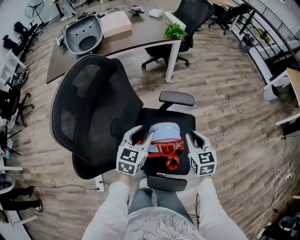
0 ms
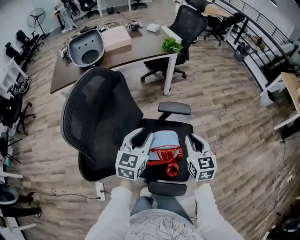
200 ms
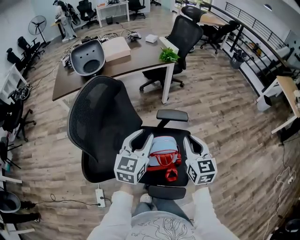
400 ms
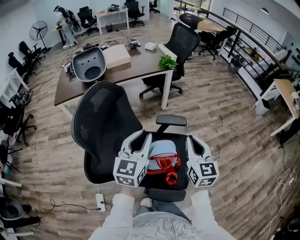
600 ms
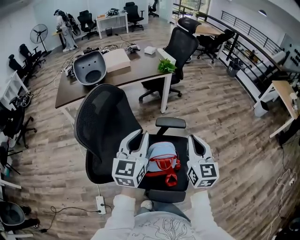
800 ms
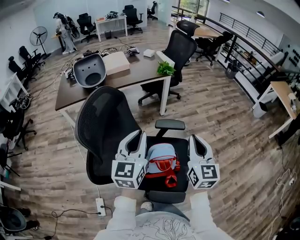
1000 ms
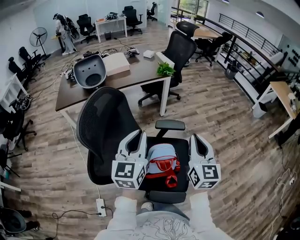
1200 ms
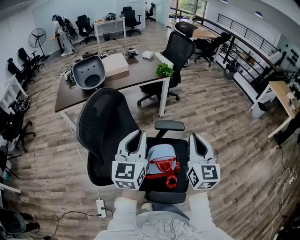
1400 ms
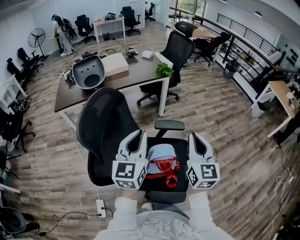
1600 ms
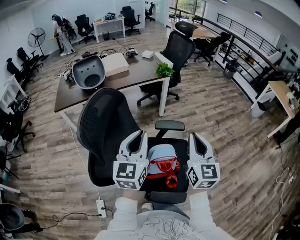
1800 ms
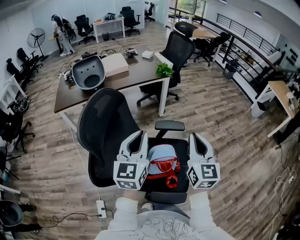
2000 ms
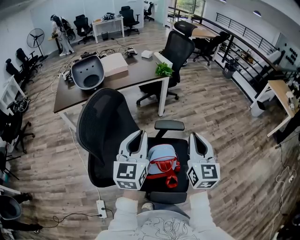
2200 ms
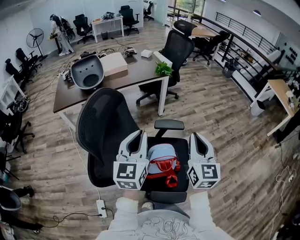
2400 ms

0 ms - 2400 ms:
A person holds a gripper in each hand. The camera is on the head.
0 ms - 1200 ms: The grippers both shift upward by roughly 25 cm. The right gripper changes its angle by some 30 degrees, while the left gripper swivels approximately 30 degrees, and closes.
1200 ms - 2400 ms: There are only small adjustments of the grippers.

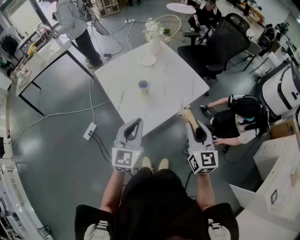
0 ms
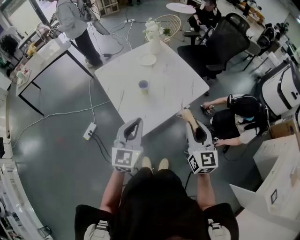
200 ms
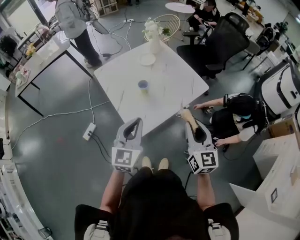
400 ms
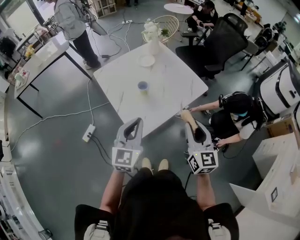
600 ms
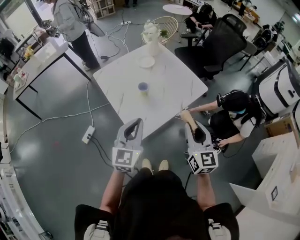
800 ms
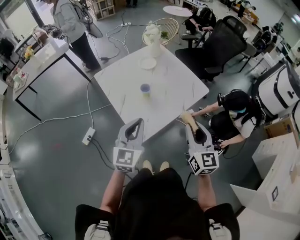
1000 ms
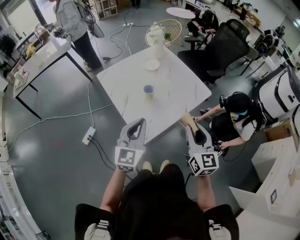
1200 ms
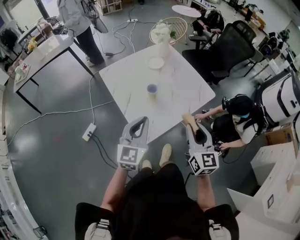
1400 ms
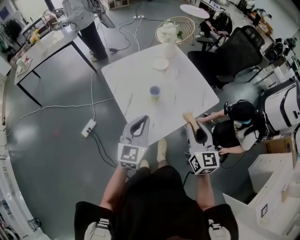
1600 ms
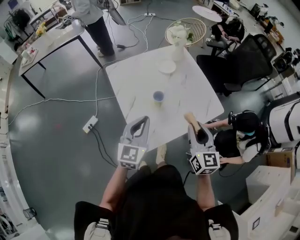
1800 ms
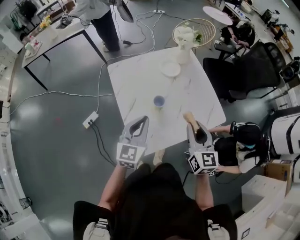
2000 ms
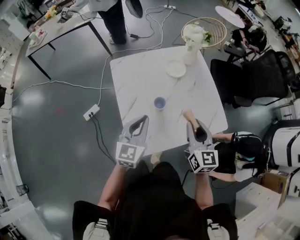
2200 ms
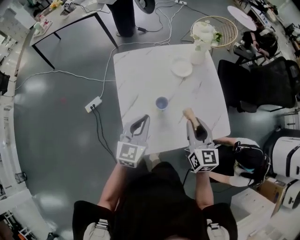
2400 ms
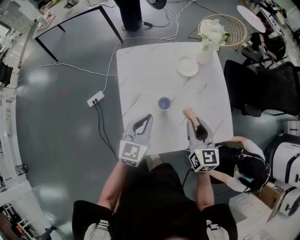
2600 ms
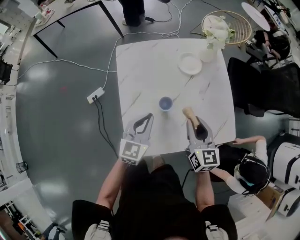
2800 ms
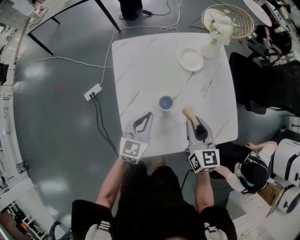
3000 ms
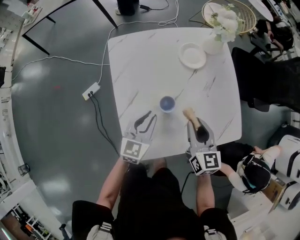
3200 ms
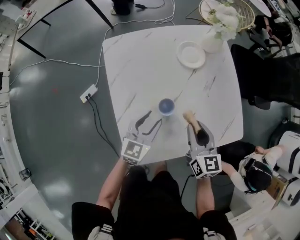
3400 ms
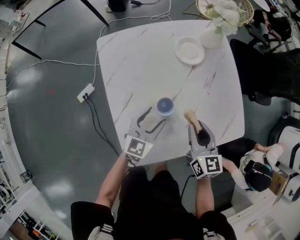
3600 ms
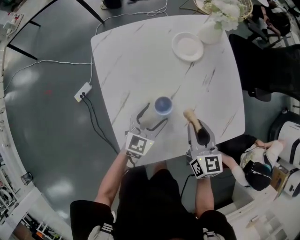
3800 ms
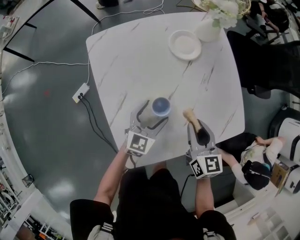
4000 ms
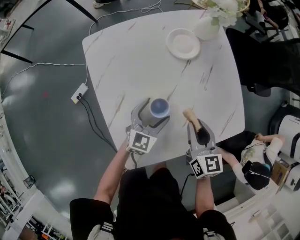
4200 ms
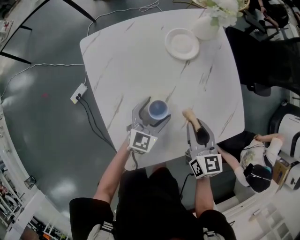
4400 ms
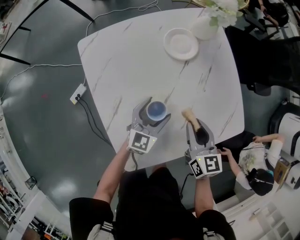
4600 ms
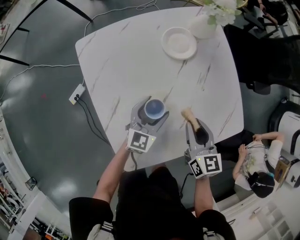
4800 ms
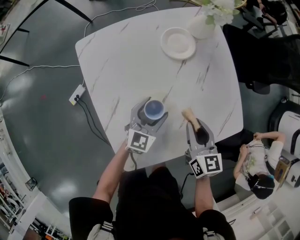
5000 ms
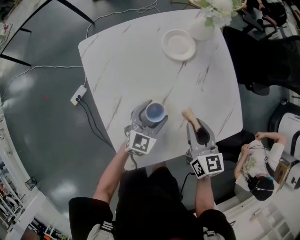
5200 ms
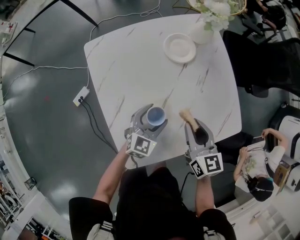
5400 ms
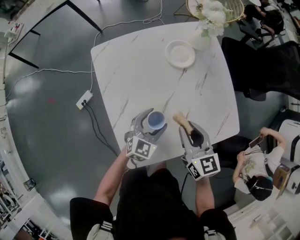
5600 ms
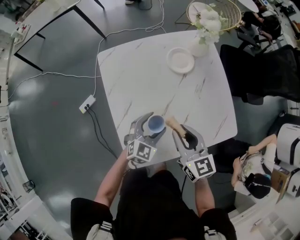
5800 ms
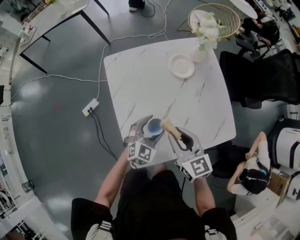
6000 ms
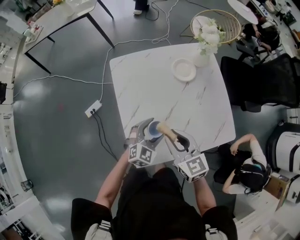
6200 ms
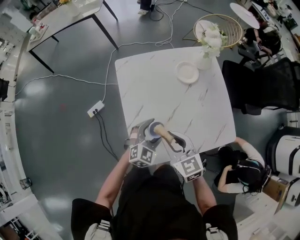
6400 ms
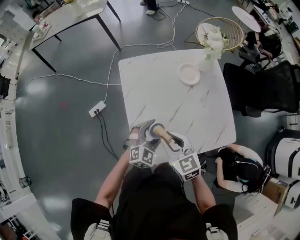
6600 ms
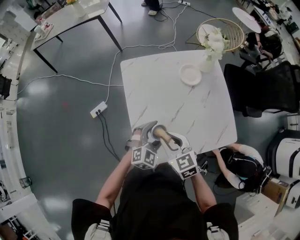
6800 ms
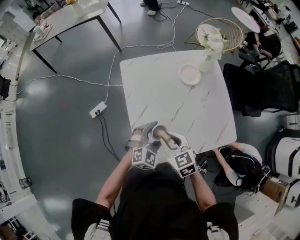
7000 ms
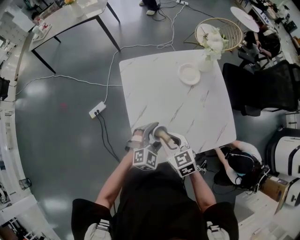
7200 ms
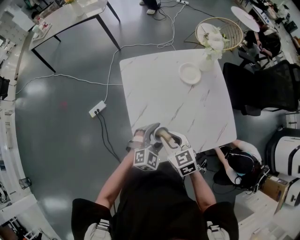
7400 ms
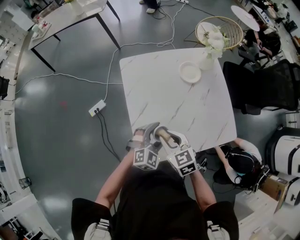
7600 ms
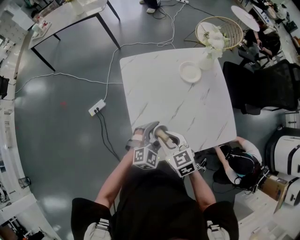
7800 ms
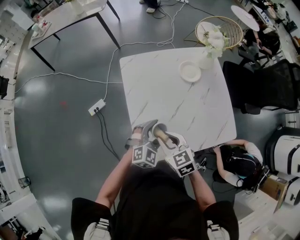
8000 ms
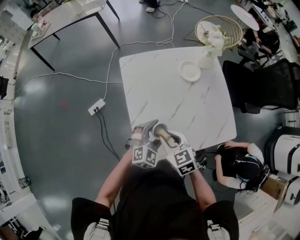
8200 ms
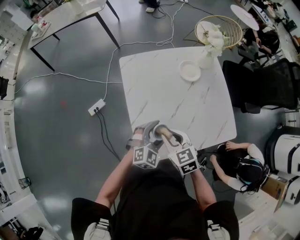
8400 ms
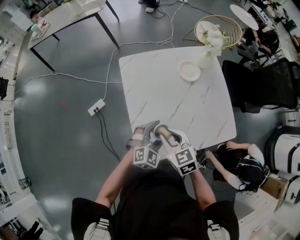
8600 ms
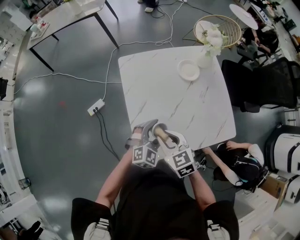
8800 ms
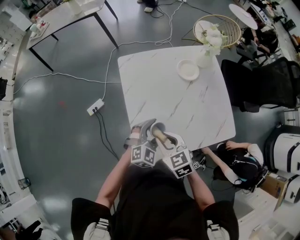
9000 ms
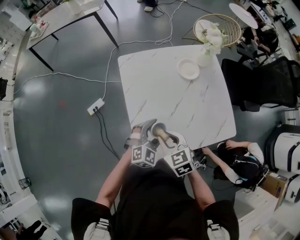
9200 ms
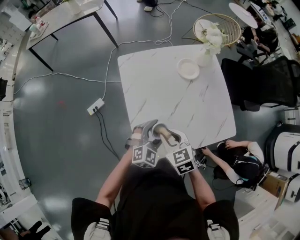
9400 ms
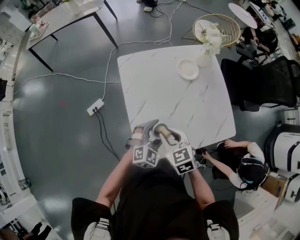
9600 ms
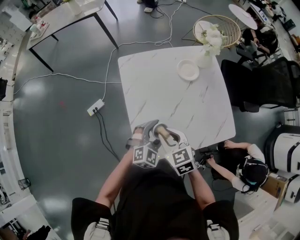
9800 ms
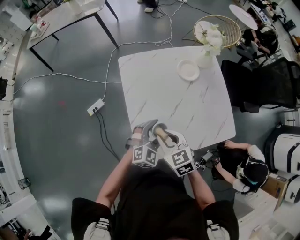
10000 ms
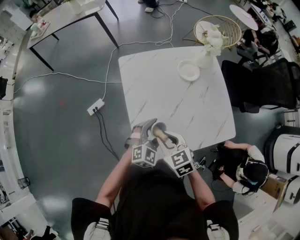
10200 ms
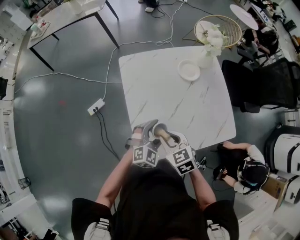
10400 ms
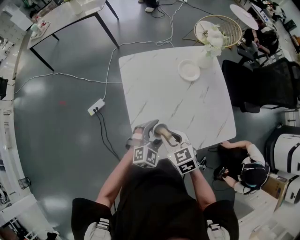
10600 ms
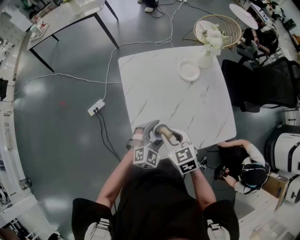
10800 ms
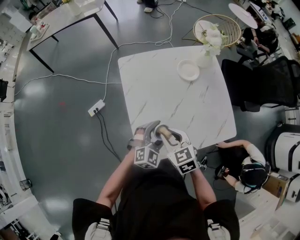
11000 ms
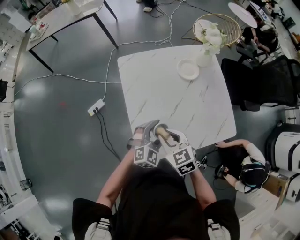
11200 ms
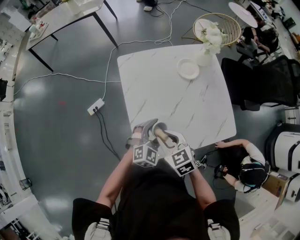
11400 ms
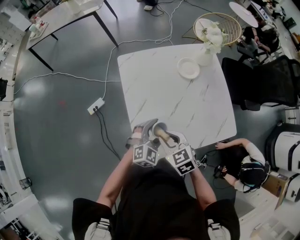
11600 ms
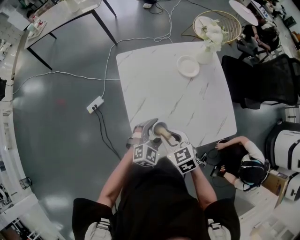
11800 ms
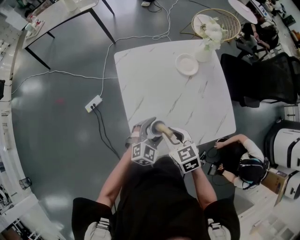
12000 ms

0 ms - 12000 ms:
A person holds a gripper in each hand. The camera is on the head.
0 ms - 1600 ms: The grippers both shift forward and to the left by roughly 10 cm.
1600 ms - 3000 ms: The grippers both shift forward and downward by roughly 25 cm. The left gripper changes its angle by some 20 degrees; the right gripper rotates about 30 degrees.
3000 ms - 4400 ms: The left gripper shifts about 15 cm downward, forward and to the right, and opens. The right gripper moves downward, some 10 cm.
4400 ms - 6000 ms: The right gripper goes some 15 cm upward and to the left, and turns by roughly 20 degrees. Meanwhile the left gripper moves upward and backward, approximately 10 cm.
6000 ms - 7600 ms: The right gripper goes approximately 10 cm to the left, and rotates about 20 degrees. The left gripper moves backward, approximately 5 cm.
7600 ms - 12000 ms: The grippers move only a little.

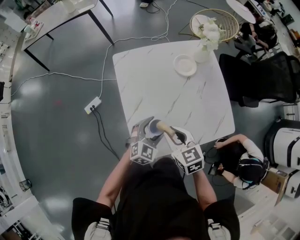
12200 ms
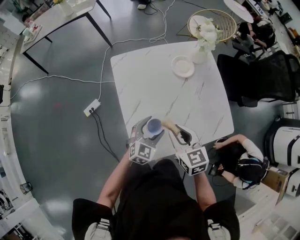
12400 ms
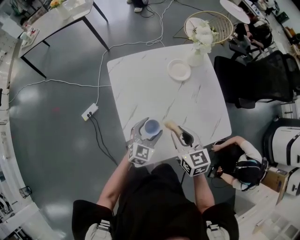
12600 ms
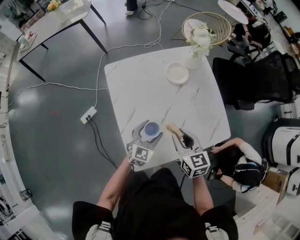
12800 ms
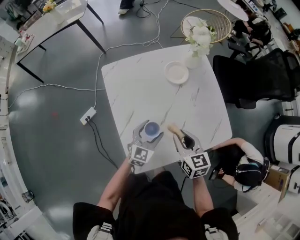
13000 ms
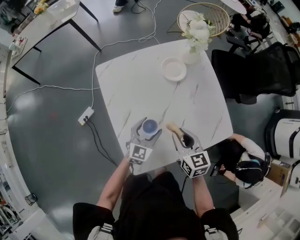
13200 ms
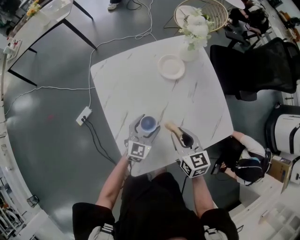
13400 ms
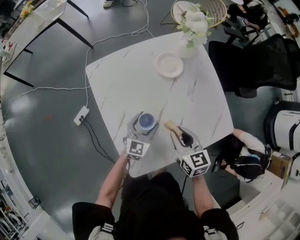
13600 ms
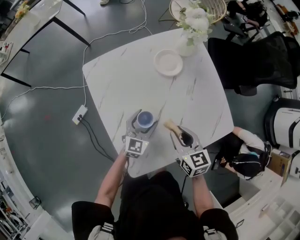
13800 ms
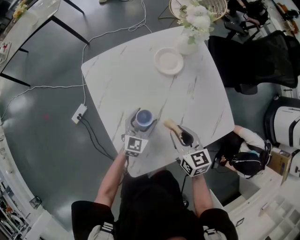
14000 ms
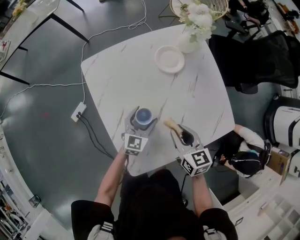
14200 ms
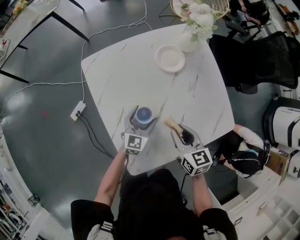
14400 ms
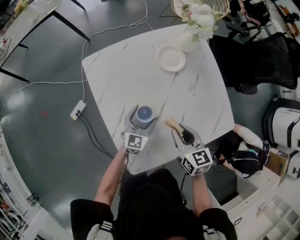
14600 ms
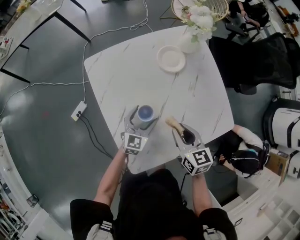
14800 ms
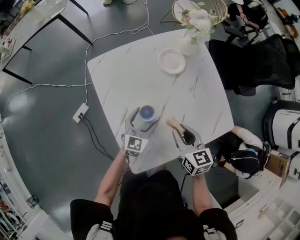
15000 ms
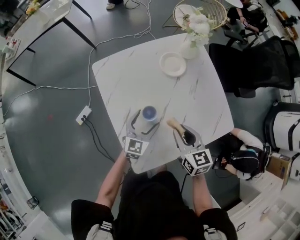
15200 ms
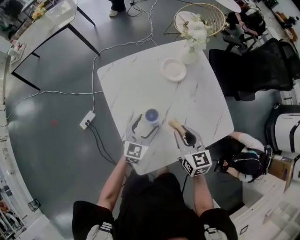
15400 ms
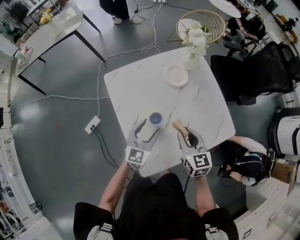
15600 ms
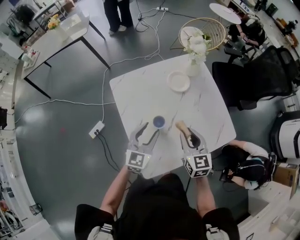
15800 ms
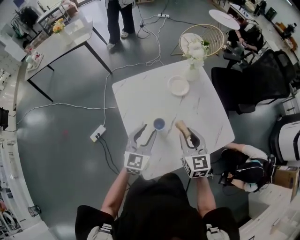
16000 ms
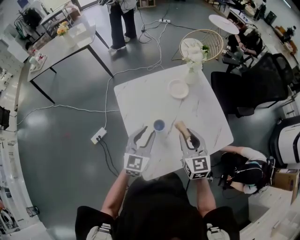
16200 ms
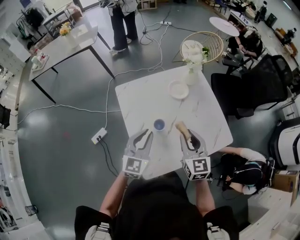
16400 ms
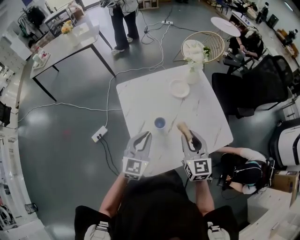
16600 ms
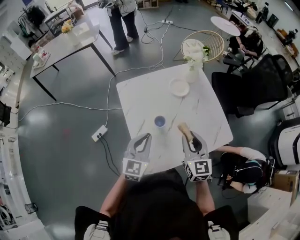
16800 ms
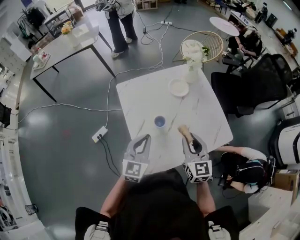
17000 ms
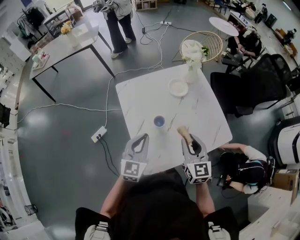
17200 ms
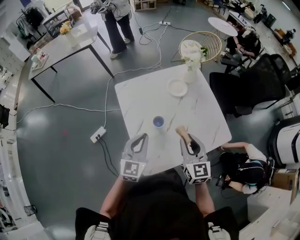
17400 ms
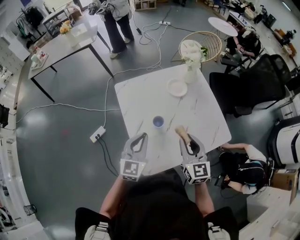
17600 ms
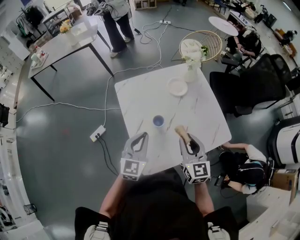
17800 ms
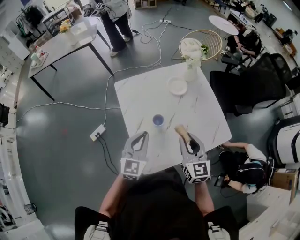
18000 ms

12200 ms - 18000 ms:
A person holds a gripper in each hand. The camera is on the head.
12200 ms - 13600 ms: The left gripper moves forward and downward, some 15 cm. Meanwhile the right gripper heads to the right, forward and downward, covering some 15 cm, and turns by approximately 20 degrees.
13600 ms - 15000 ms: There are only small adjustments of the grippers.
15000 ms - 16600 ms: The left gripper goes approximately 25 cm upward and backward, and closes up. The right gripper goes about 15 cm upward, and swivels approximately 20 degrees.
16600 ms - 18000 ms: The grippers move only a little.

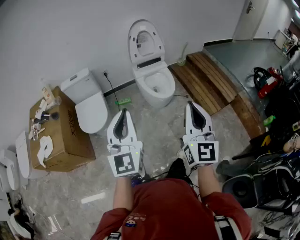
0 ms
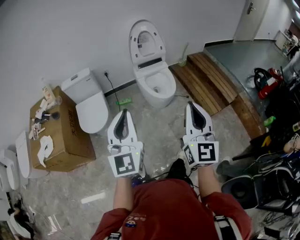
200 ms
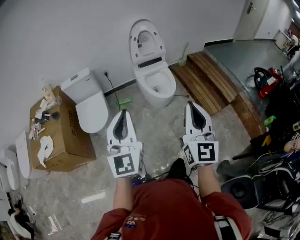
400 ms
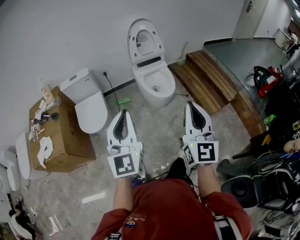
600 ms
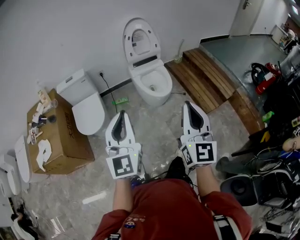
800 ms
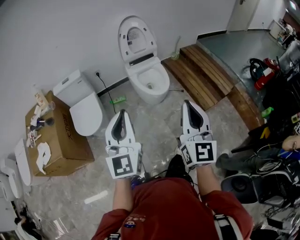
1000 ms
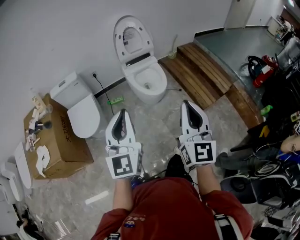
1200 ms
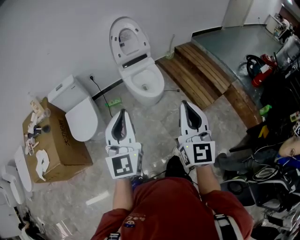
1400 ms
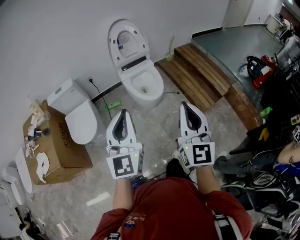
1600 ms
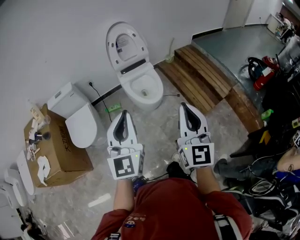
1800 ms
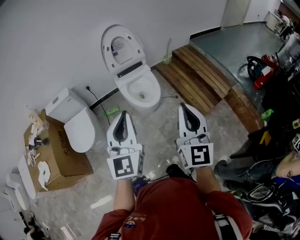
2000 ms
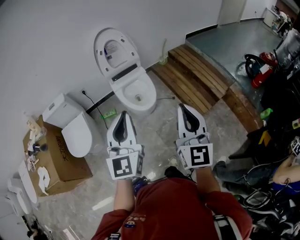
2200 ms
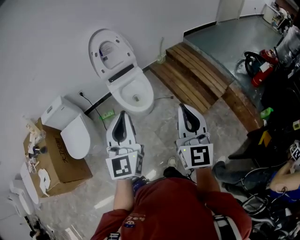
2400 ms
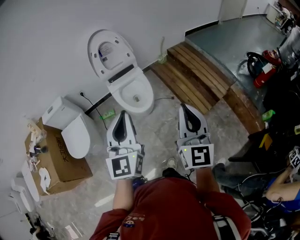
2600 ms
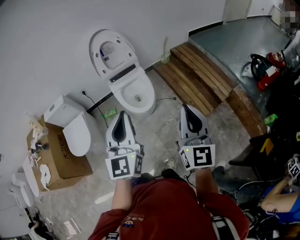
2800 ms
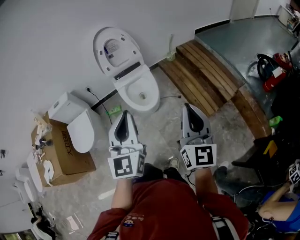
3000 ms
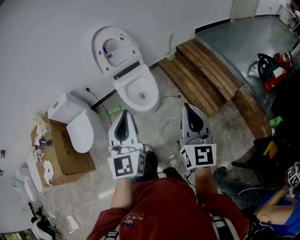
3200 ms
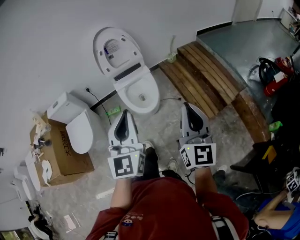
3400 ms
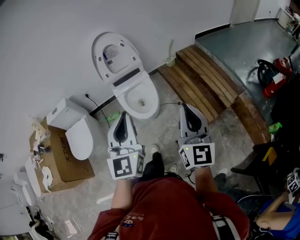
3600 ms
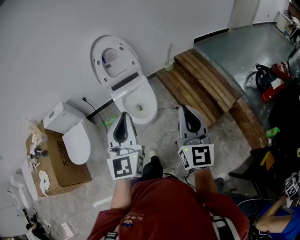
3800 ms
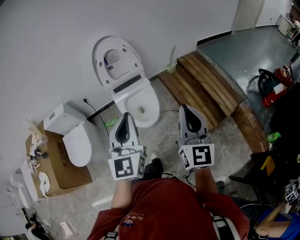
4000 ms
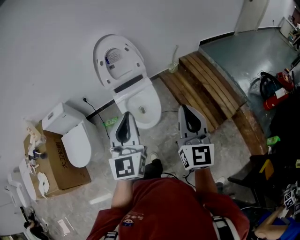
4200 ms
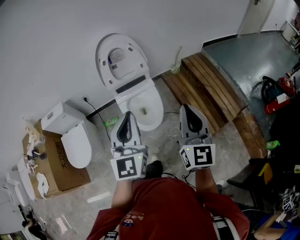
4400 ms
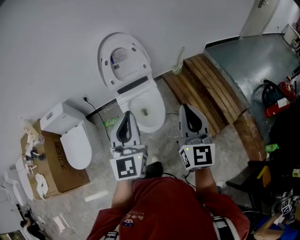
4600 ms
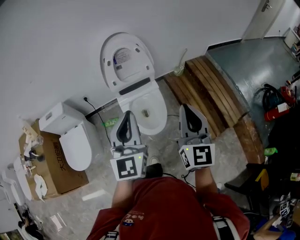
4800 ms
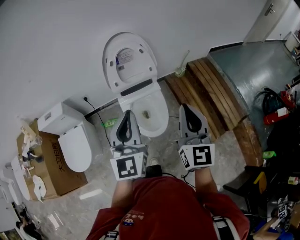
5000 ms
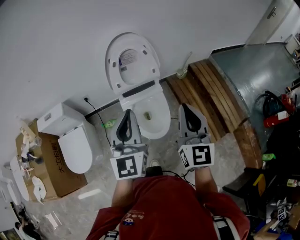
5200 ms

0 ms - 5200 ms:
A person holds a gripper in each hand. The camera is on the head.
0 ms - 1800 ms: Both grippers move forward and to the right, approximately 15 cm.
1800 ms - 3400 ms: Both grippers travel together to the right and forward, approximately 25 cm.
3400 ms - 5200 ms: The grippers both shift forward and to the left by some 35 cm.
